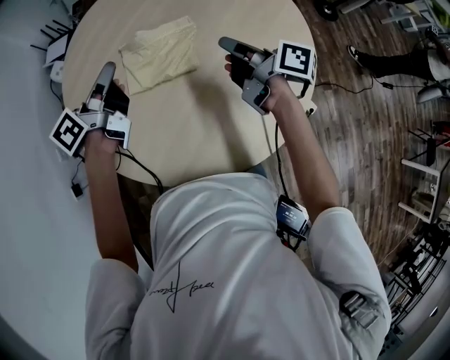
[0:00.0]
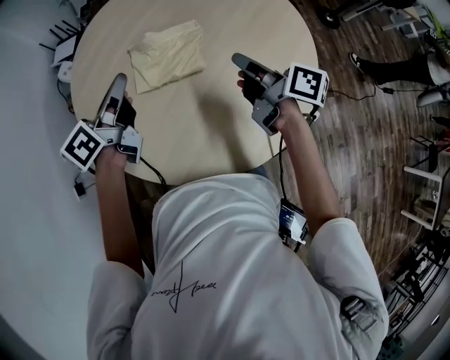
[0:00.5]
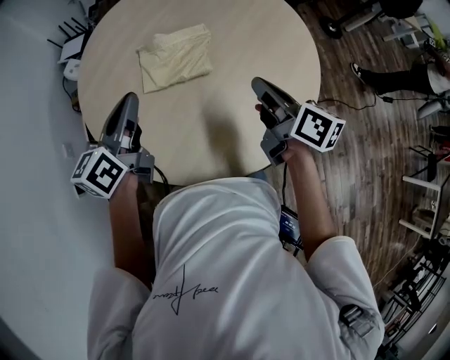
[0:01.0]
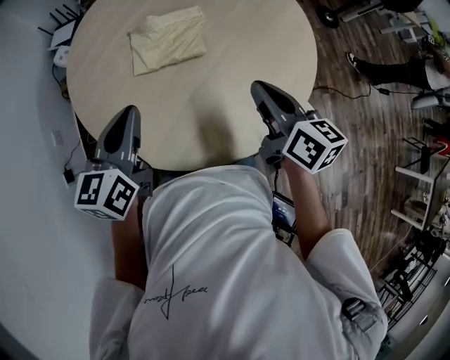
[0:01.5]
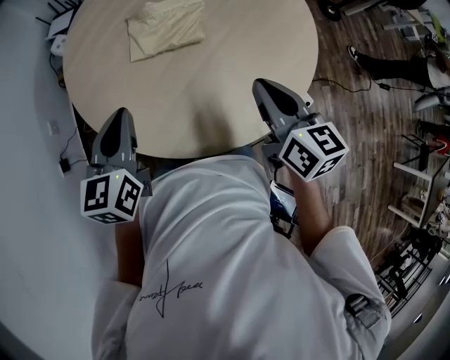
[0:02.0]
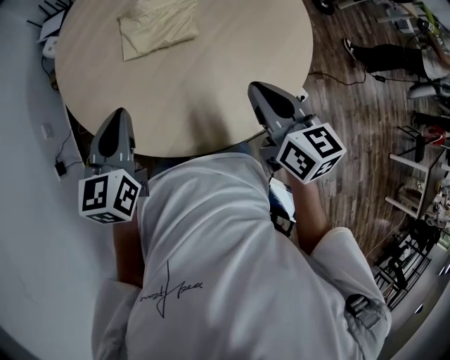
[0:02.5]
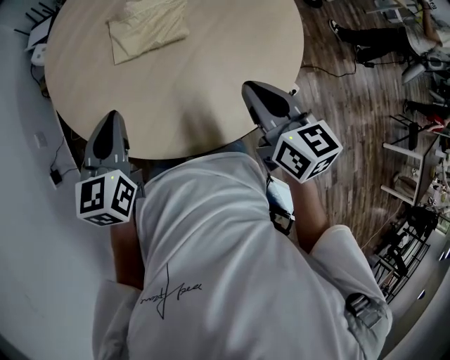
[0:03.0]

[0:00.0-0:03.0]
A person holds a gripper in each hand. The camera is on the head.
0:00.0 to 0:01.5: Both grippers travel together backward, roughly 15 cm. The left gripper twists approximately 40 degrees clockwise, seen from behind. The right gripper changes its angle by some 40 degrees.
0:01.5 to 0:03.0: The grippers move only a little.

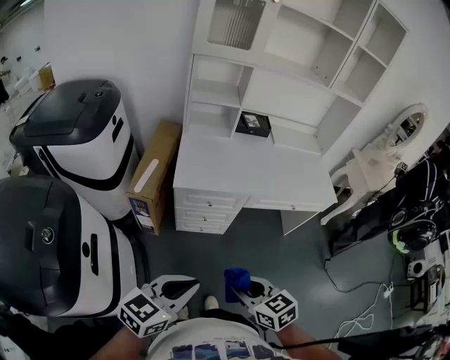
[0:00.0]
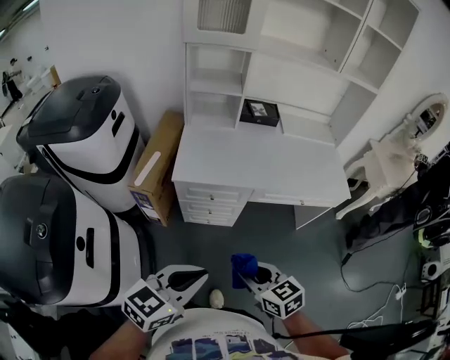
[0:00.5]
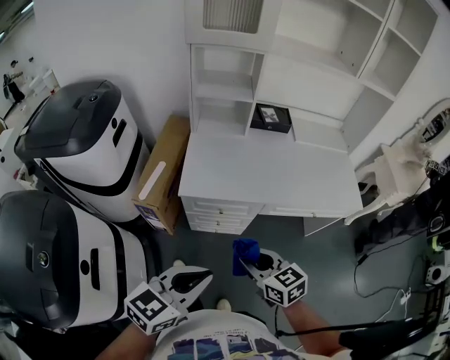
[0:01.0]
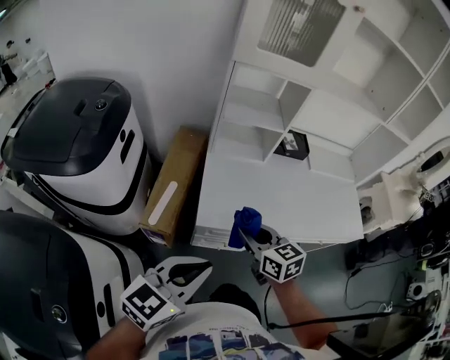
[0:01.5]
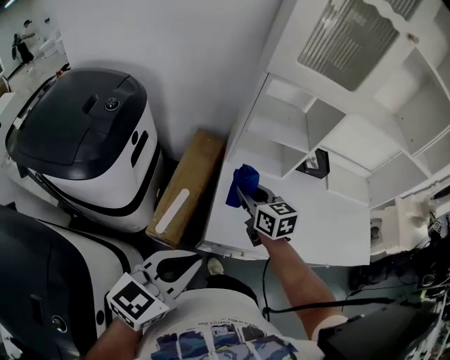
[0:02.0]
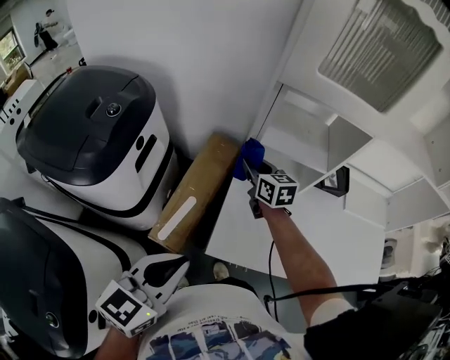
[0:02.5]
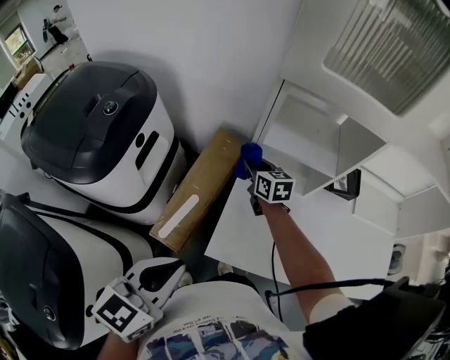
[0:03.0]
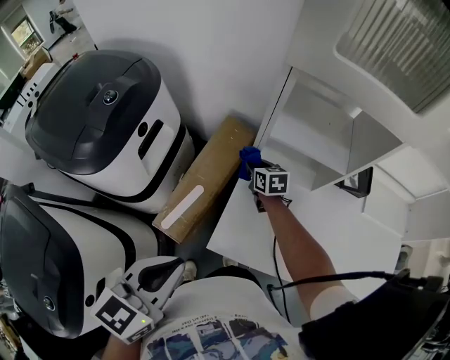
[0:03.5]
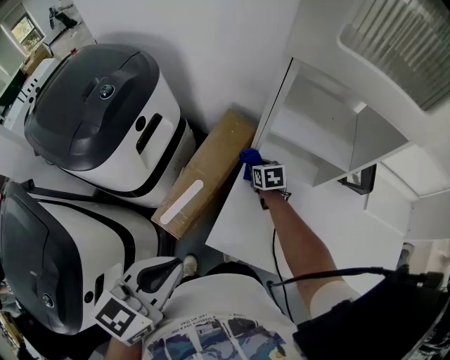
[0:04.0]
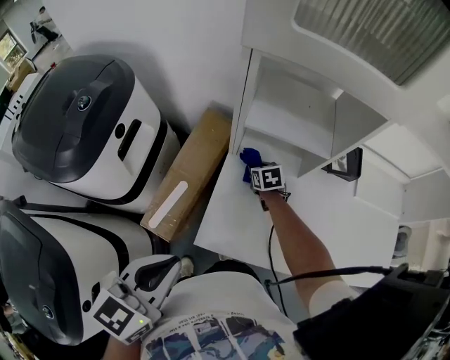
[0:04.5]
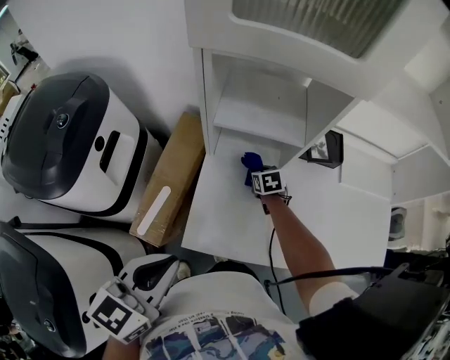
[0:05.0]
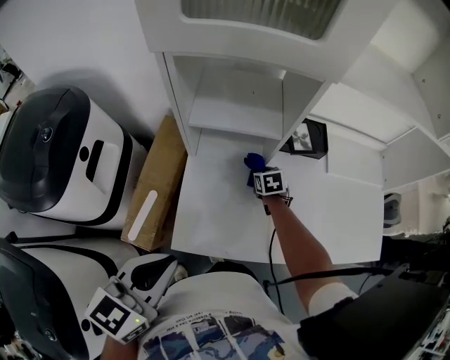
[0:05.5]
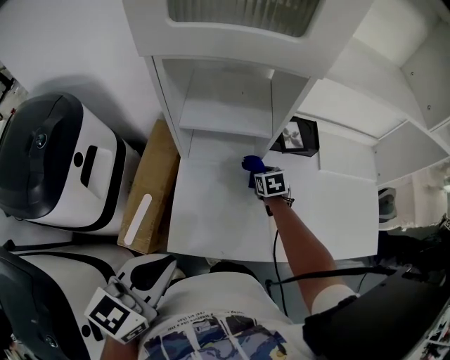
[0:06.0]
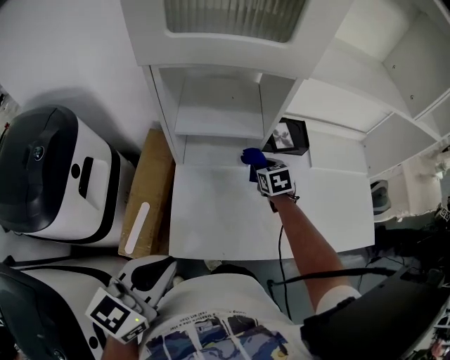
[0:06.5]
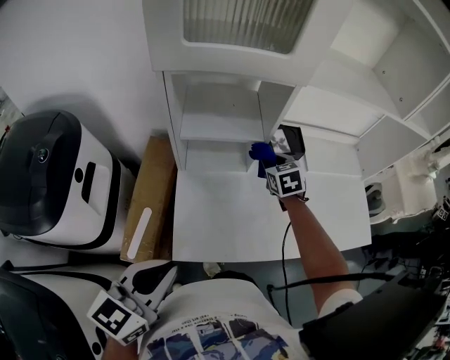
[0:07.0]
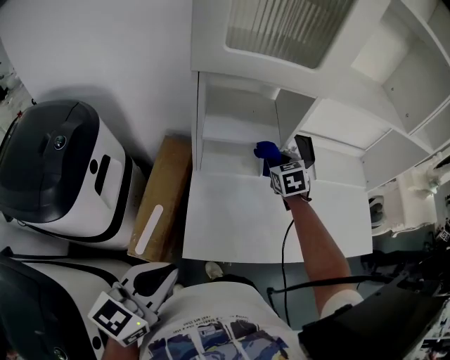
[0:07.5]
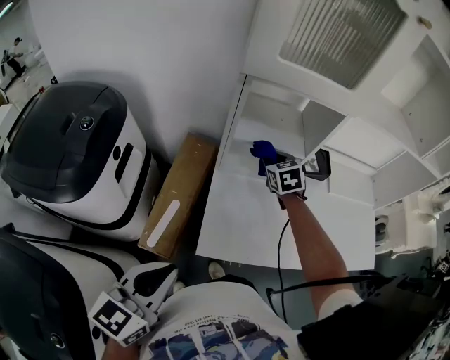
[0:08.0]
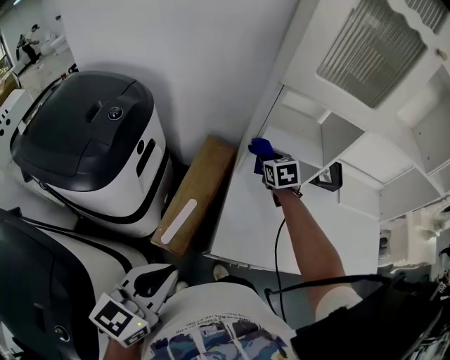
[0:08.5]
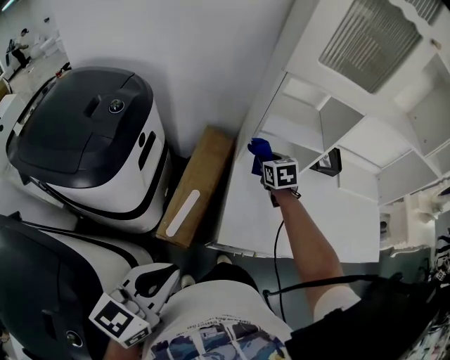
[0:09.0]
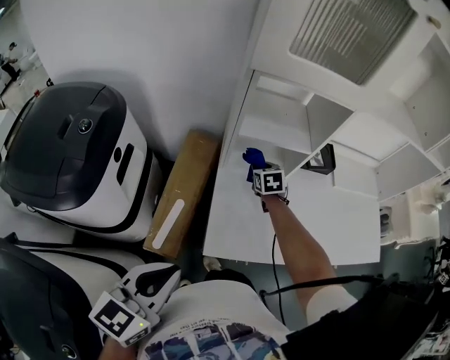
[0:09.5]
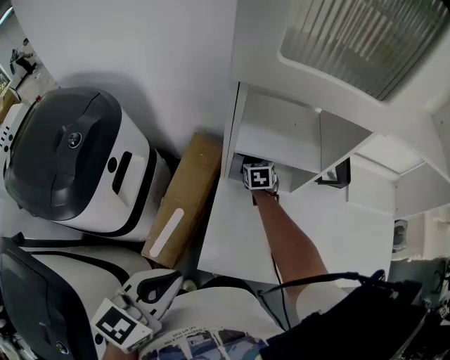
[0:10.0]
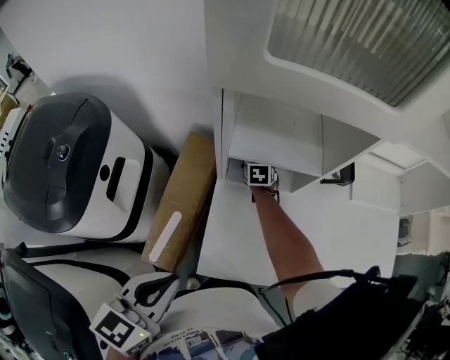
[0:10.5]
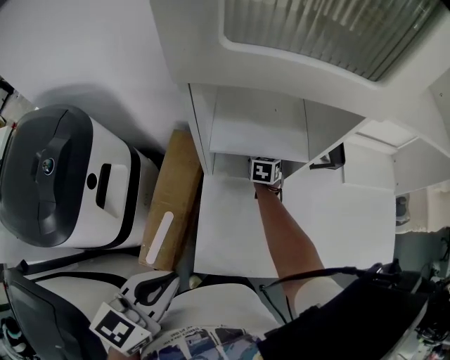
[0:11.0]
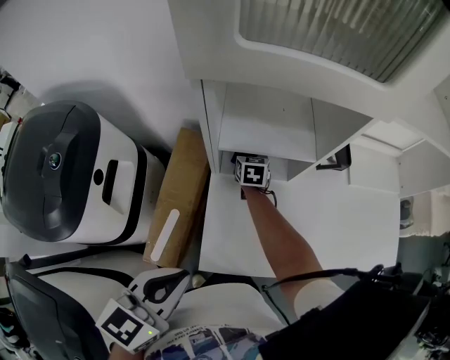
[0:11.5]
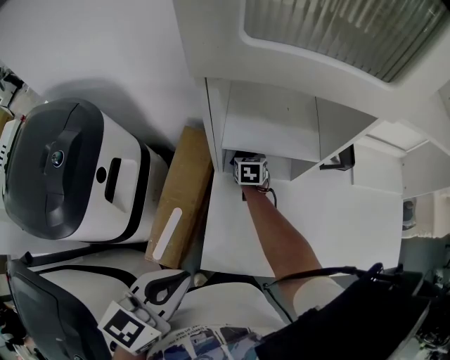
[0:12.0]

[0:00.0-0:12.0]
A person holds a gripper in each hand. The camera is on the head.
0:00.0 to 0:02.0: The left gripper heads forward and to the left, covering roughly 35 cm; the right gripper heads forward, covering roughly 60 cm.
0:02.0 to 0:04.0: The left gripper goes roughly 5 cm forward, and rotates about 30 degrees. Meanwhile the right gripper travels downward and forward by roughly 30 cm, and swivels roughly 30 degrees.
0:04.0 to 0:06.0: The left gripper goes roughly 10 cm to the right. The right gripper goes some 25 cm to the right.
0:06.0 to 0:08.0: The right gripper shifts roughly 25 cm upward and to the left, and turns by about 20 degrees; the left gripper travels to the left and backward by approximately 15 cm.
0:08.0 to 0:10.0: The left gripper is displaced forward by roughly 5 cm. The right gripper moves downward, forward and to the left, approximately 20 cm.
0:10.0 to 0:12.0: The right gripper goes to the right and returns, about 10 cm each way.

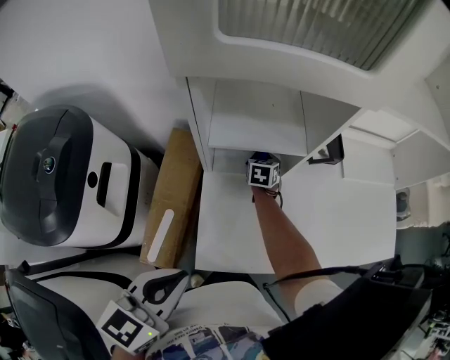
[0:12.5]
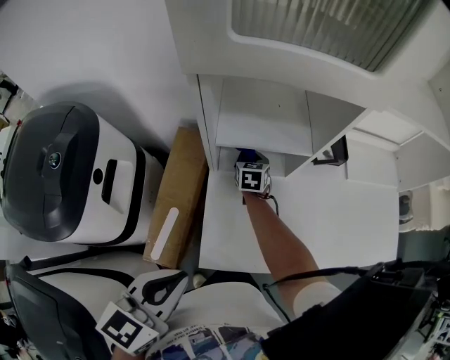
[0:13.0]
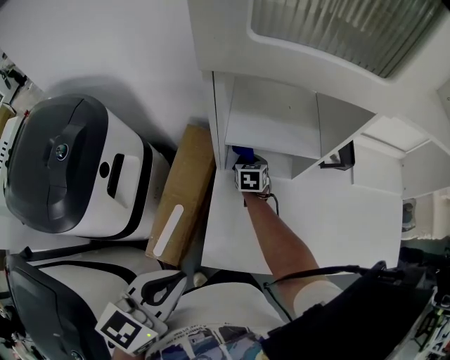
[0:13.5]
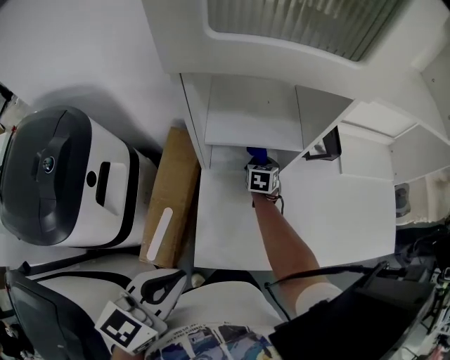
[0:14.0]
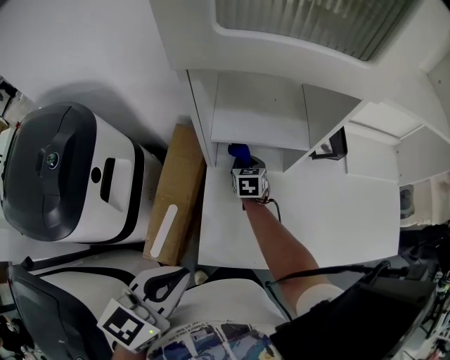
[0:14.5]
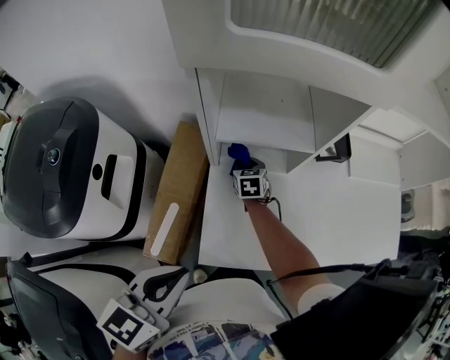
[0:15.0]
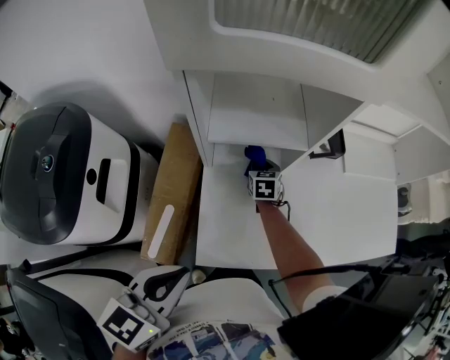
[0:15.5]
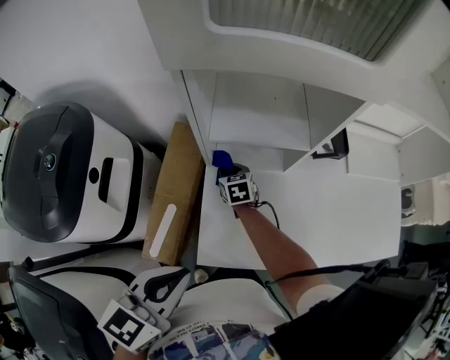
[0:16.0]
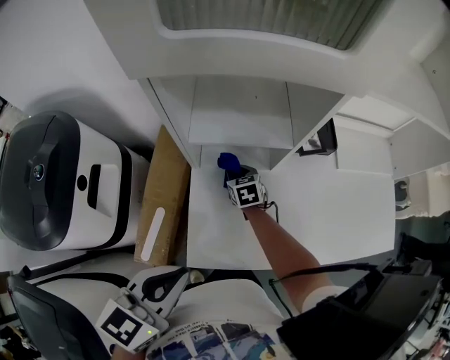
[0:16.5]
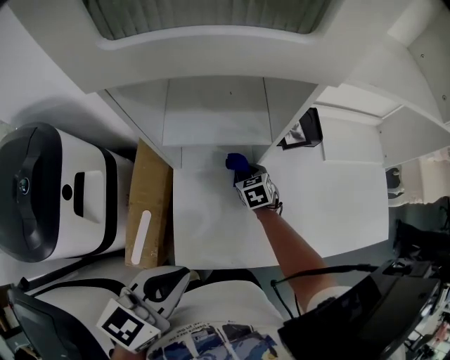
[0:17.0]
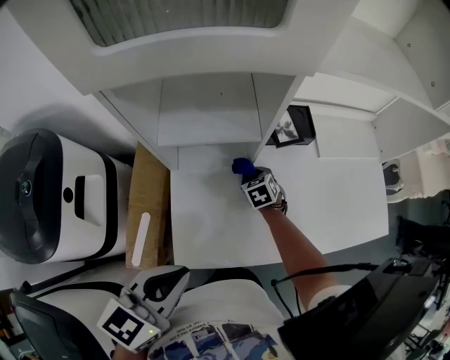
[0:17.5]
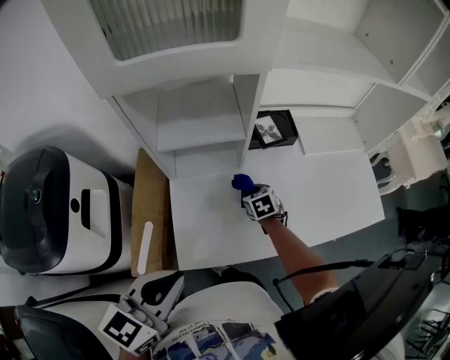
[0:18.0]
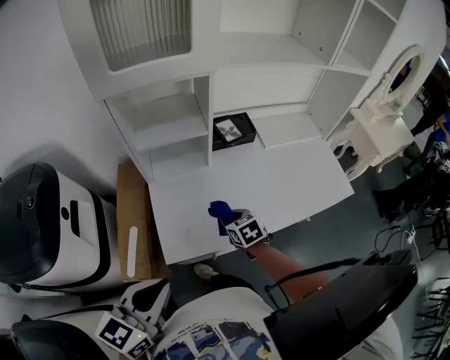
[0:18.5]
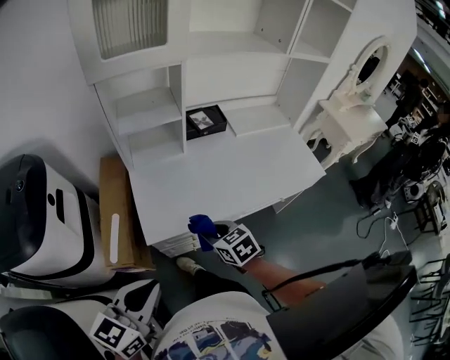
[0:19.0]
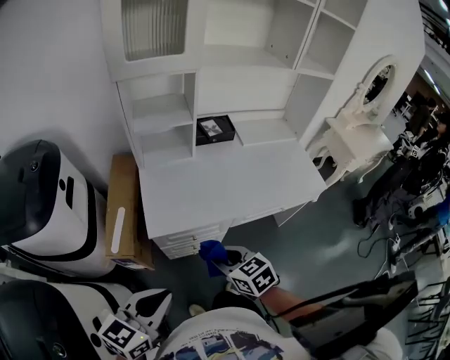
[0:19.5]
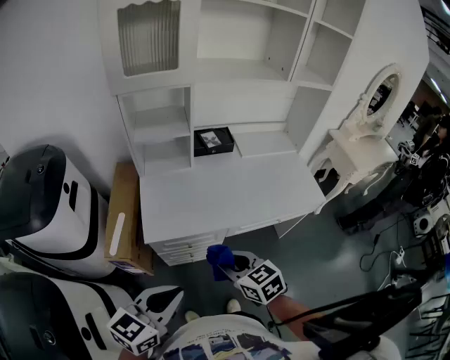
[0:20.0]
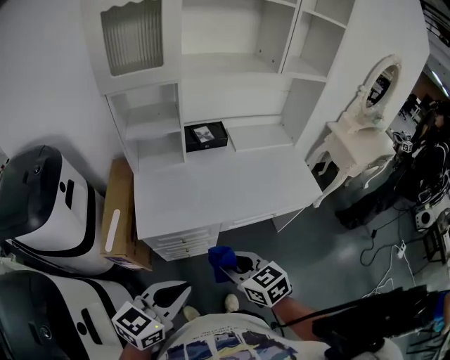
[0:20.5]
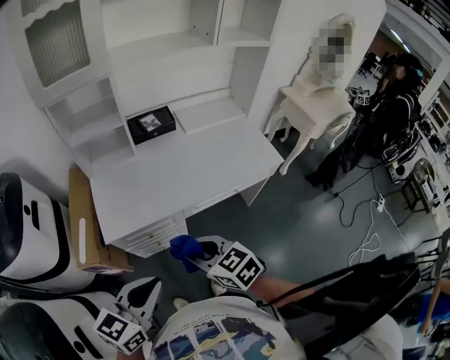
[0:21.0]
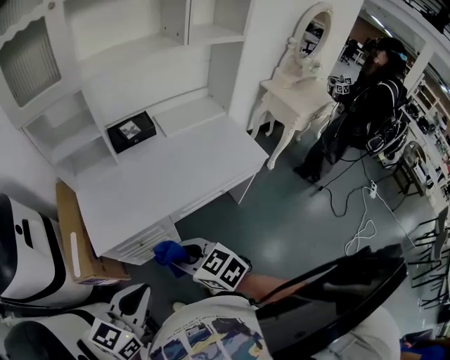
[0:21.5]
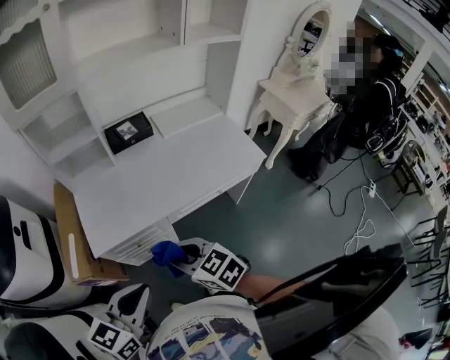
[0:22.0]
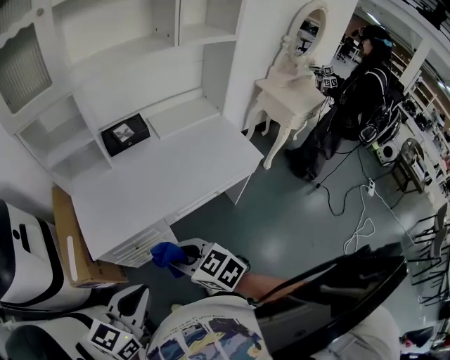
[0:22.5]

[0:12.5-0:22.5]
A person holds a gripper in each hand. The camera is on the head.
0:12.5 to 0:14.5: The right gripper goes left and right, about 10 cm each way, reversing 2 times.
0:14.5 to 0:16.5: The right gripper swings left and right, approximately 10 cm each way, with 2 reversals.
0:16.5 to 0:18.5: The left gripper travels backward by about 15 cm; the right gripper travels backward and to the right by some 25 cm.
0:18.5 to 0:20.5: The left gripper is displaced to the right and backward by roughly 25 cm; the right gripper moves backward and upward, roughly 35 cm.
0:20.5 to 0:22.5: The grippers make only small movements.

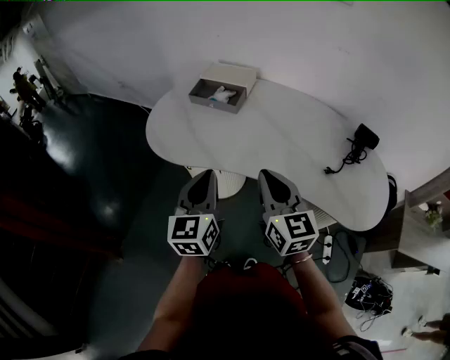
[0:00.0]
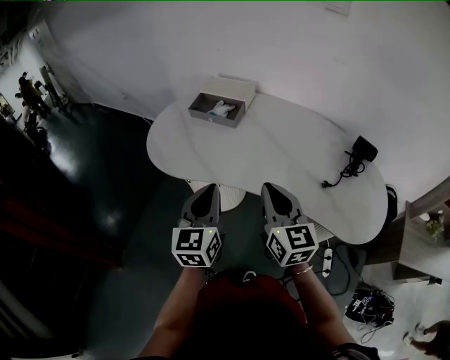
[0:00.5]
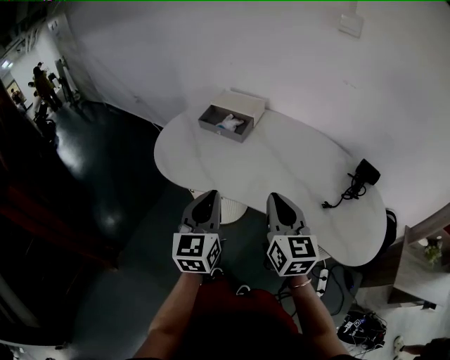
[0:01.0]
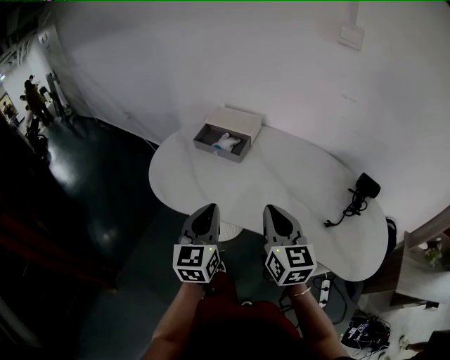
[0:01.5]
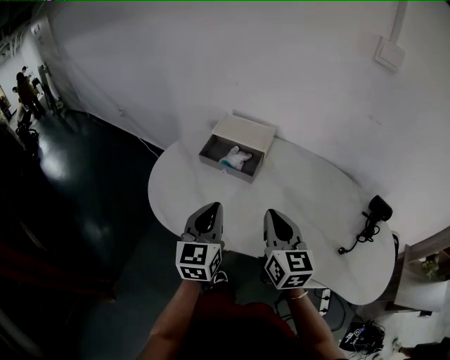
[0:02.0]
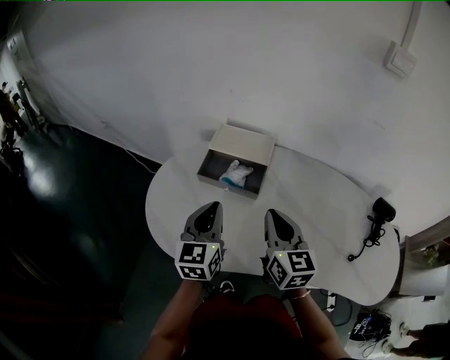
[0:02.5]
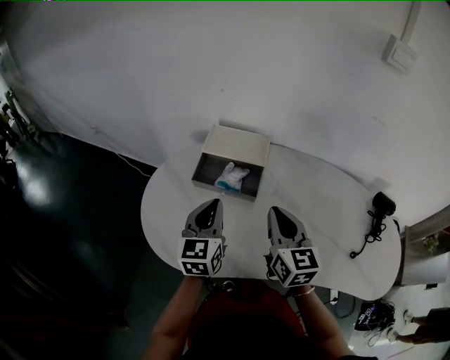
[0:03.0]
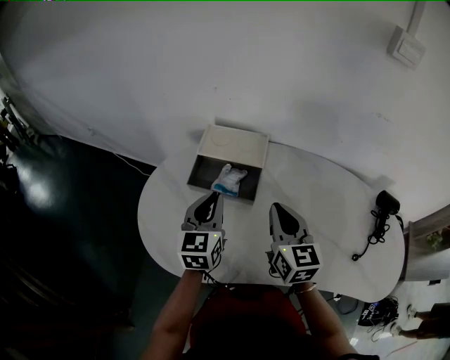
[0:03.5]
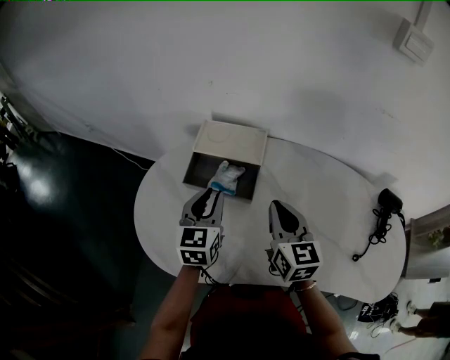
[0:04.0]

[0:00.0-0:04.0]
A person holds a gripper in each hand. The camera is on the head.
0:00.0 to 0:02.0: The grippers both shift forward by approximately 20 cm.
0:02.0 to 0:04.0: Both grippers move forward, some 15 cm.
